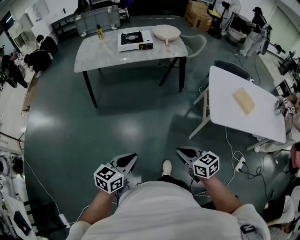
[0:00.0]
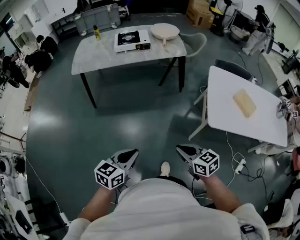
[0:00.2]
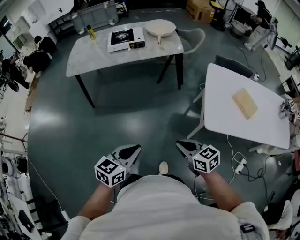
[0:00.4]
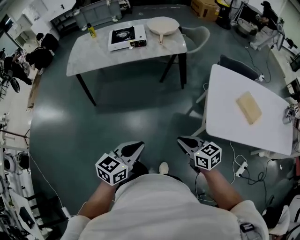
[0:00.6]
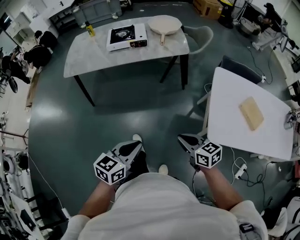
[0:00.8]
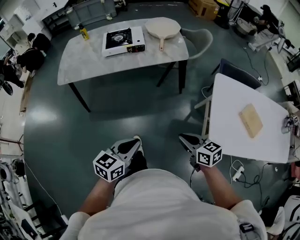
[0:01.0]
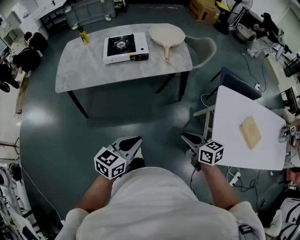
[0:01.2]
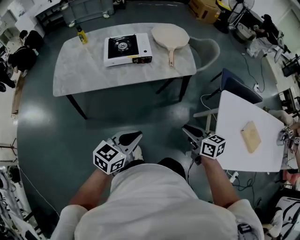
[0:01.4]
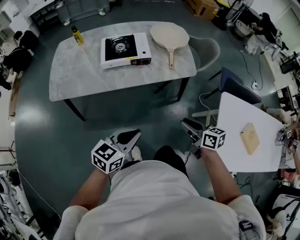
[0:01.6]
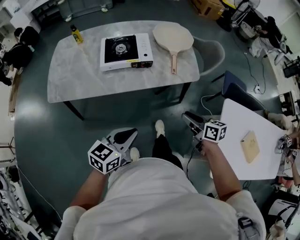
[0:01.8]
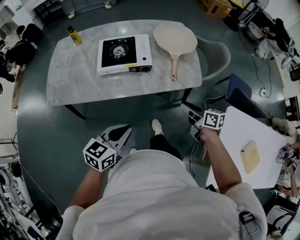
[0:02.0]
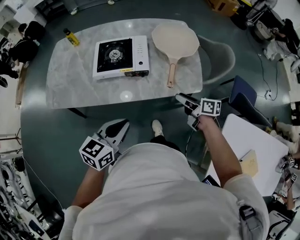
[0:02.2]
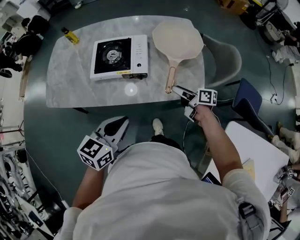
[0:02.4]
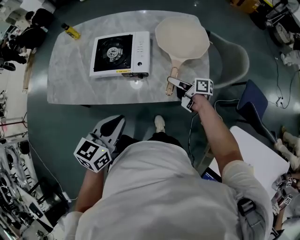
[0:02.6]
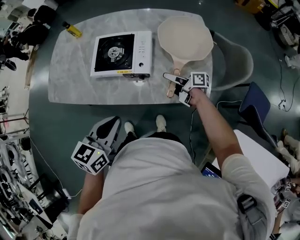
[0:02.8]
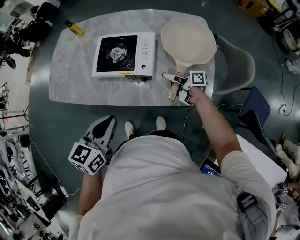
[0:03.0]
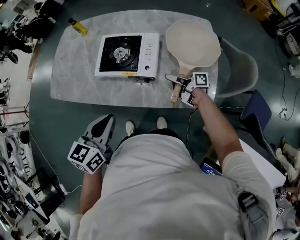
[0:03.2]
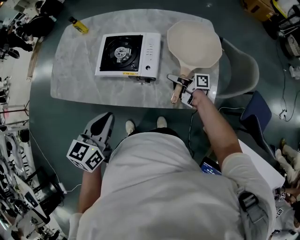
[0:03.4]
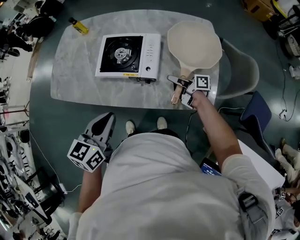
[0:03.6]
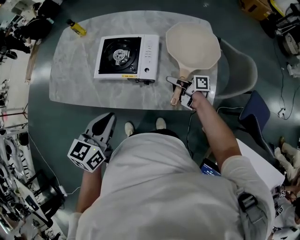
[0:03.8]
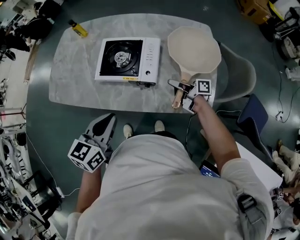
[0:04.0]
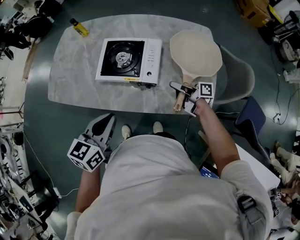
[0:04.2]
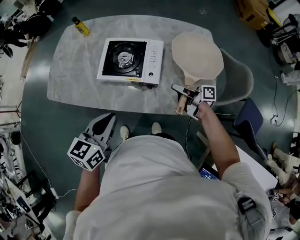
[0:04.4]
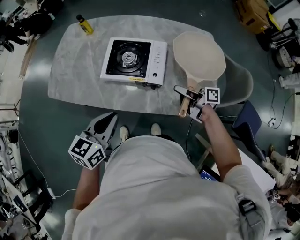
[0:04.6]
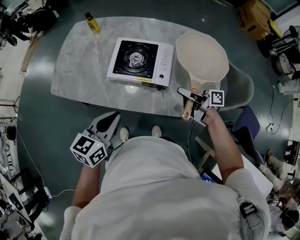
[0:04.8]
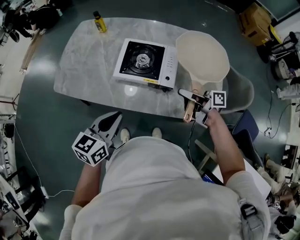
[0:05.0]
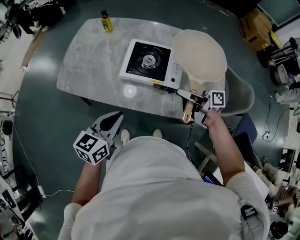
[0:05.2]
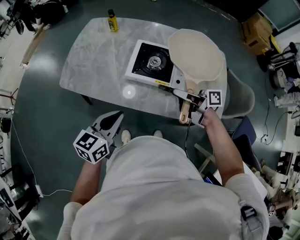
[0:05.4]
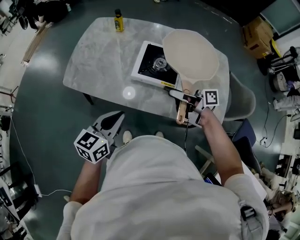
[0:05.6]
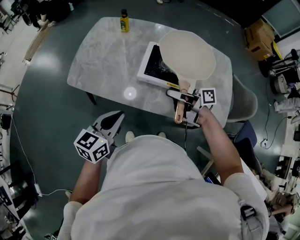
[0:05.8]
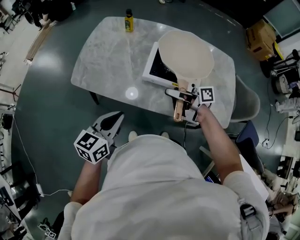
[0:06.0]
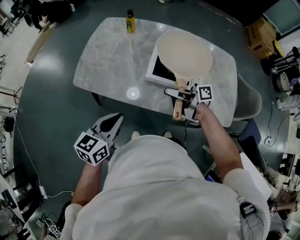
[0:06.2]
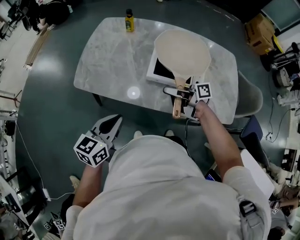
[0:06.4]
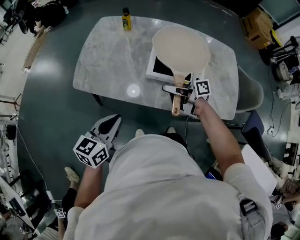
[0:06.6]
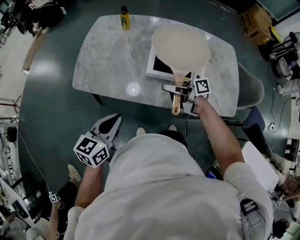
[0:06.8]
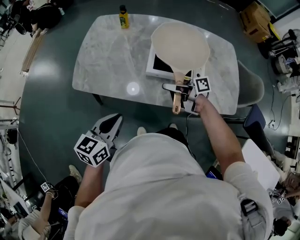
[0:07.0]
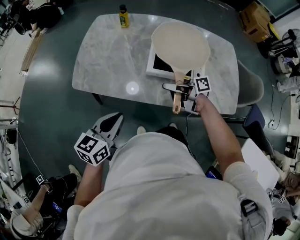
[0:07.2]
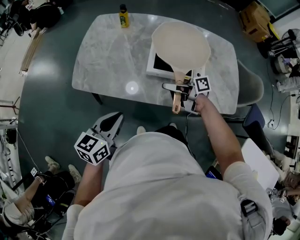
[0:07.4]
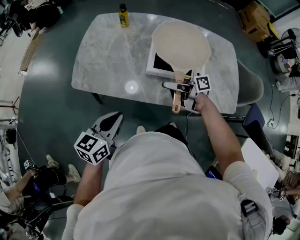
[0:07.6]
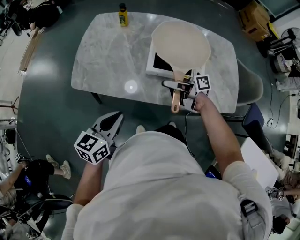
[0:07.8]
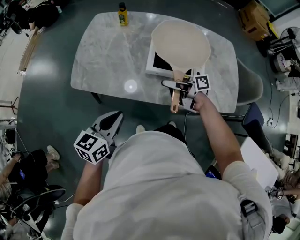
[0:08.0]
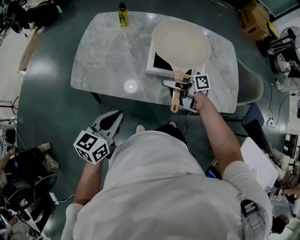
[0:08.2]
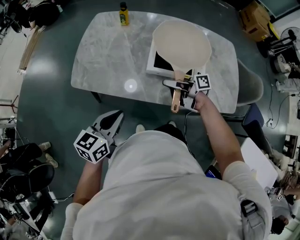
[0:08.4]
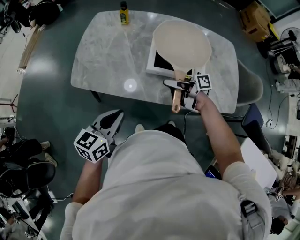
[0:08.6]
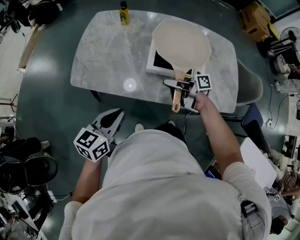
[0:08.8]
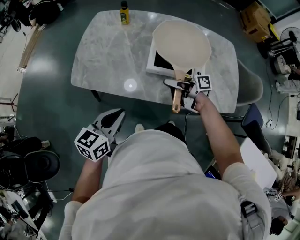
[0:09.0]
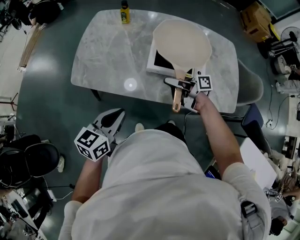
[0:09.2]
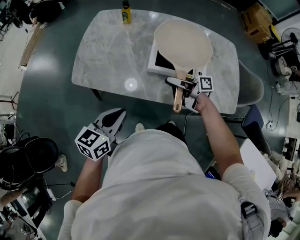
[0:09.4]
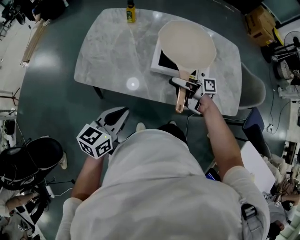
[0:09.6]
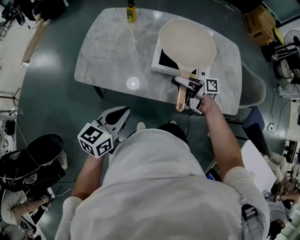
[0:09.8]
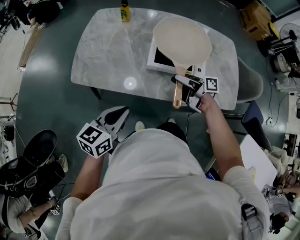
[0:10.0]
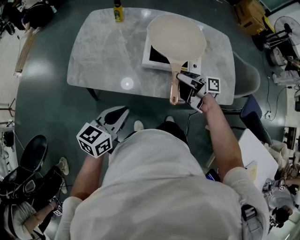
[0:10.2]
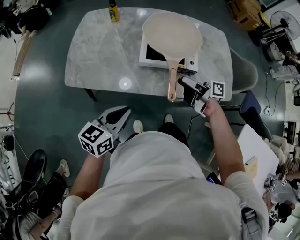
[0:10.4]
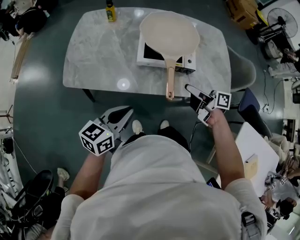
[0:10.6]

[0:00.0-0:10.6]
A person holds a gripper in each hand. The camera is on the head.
0:00.0 to 0:01.6: The two grippers travel together, forward, approximately 50 cm.
0:01.6 to 0:03.0: The left gripper changes place by roughly 25 cm, and swivels about 30 degrees, while the right gripper ends up some 50 cm from where it was, and swivels approximately 50 degrees.
0:03.0 to 0:04.6: The right gripper moves upward, approximately 10 cm, and closes its fingers. The left gripper ends up about 5 cm from where it was.
0:04.6 to 0:06.0: The two grippers go roughly 20 cm to the left.
0:06.0 to 0:07.6: The right gripper ends up about 5 cm from where it was. Meanwhile the left gripper ends up roughly 5 cm from where it was.
0:07.6 to 0:09.0: The grippers stay close to where they were, moving slightly.
0:09.0 to 0:10.6: The right gripper goes about 15 cm to the right and backward, swivels some 30 degrees, and opens up. Meanwhile the left gripper changes place by about 5 cm.

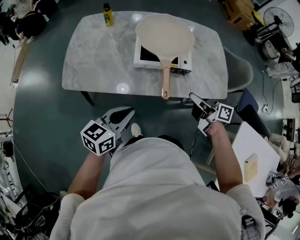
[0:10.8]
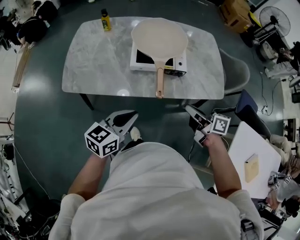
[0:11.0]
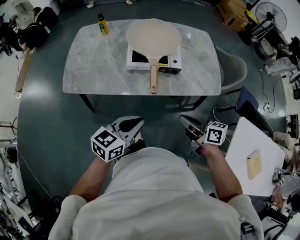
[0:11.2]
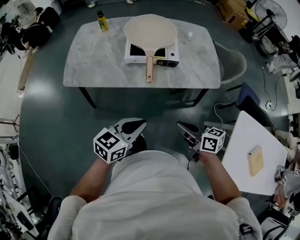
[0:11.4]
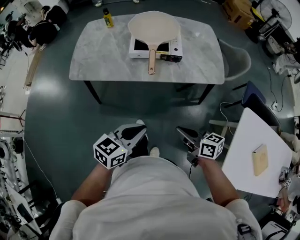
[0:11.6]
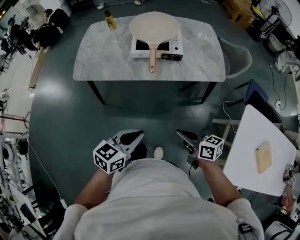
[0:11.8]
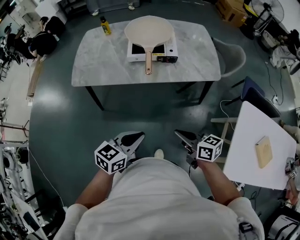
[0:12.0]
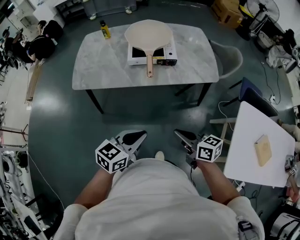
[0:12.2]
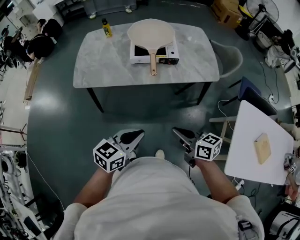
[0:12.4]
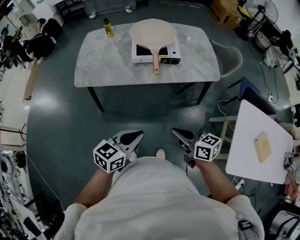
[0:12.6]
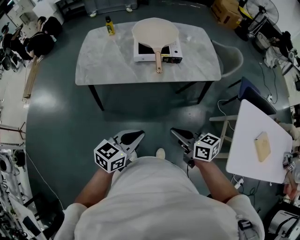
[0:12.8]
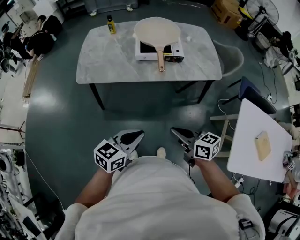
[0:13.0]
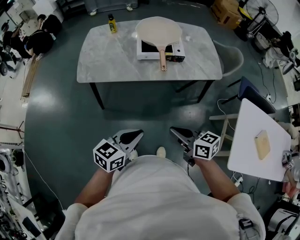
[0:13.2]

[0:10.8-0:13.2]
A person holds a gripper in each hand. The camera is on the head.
0:10.8 to 0:12.0: The right gripper is displaced backward by approximately 30 cm, and changes its angle by approximately 20 degrees, while the left gripper travels backward and to the right by some 25 cm.
0:12.0 to 0:13.2: The grippers both shift to the left by some 10 cm.

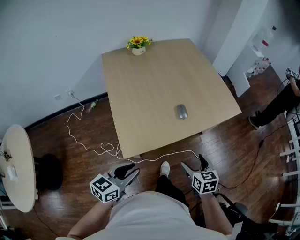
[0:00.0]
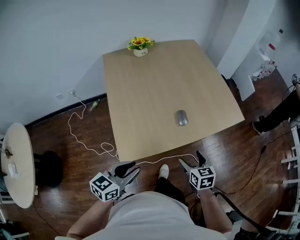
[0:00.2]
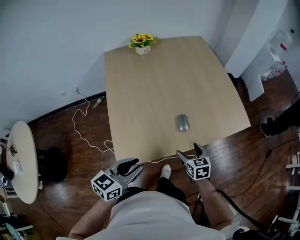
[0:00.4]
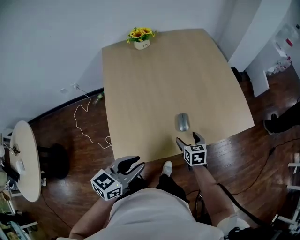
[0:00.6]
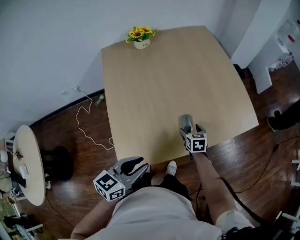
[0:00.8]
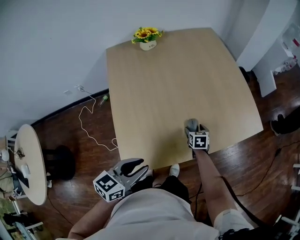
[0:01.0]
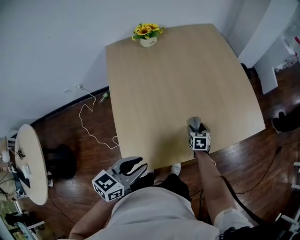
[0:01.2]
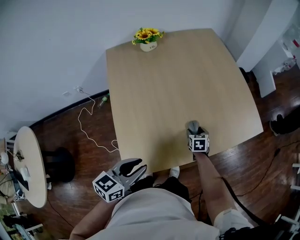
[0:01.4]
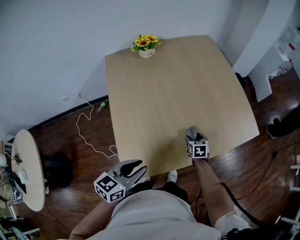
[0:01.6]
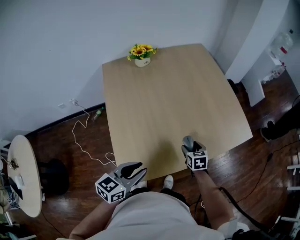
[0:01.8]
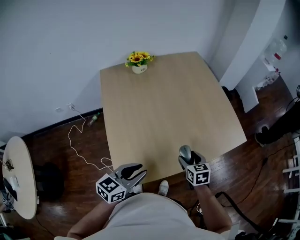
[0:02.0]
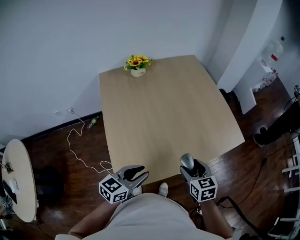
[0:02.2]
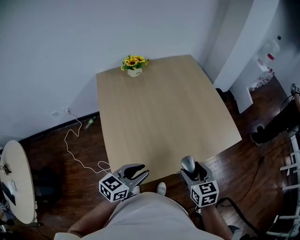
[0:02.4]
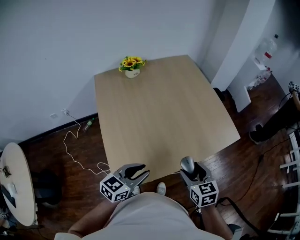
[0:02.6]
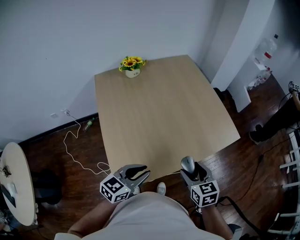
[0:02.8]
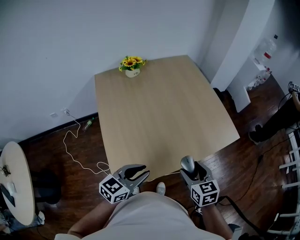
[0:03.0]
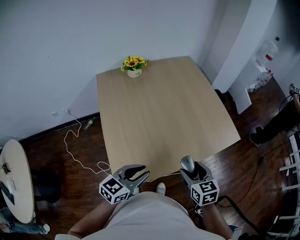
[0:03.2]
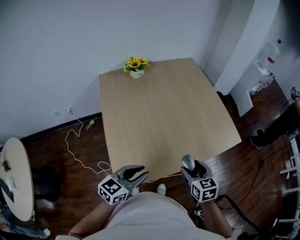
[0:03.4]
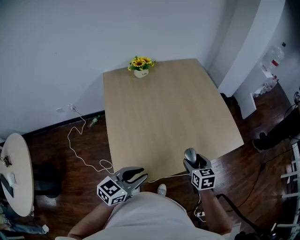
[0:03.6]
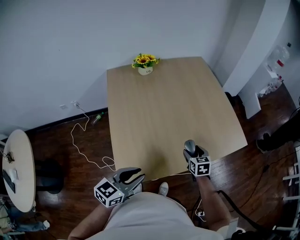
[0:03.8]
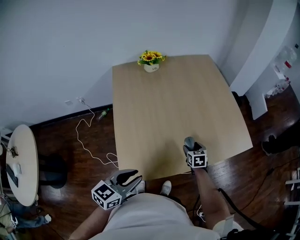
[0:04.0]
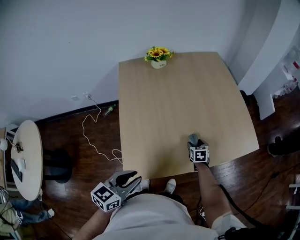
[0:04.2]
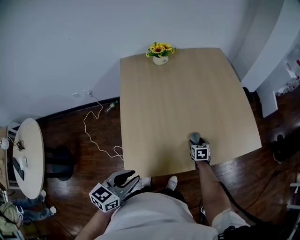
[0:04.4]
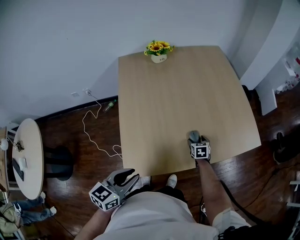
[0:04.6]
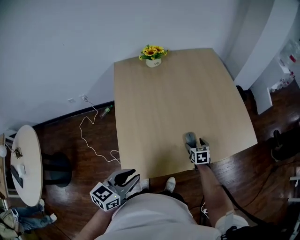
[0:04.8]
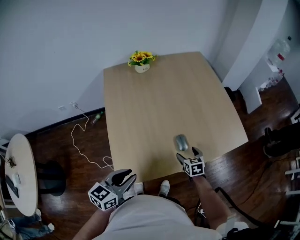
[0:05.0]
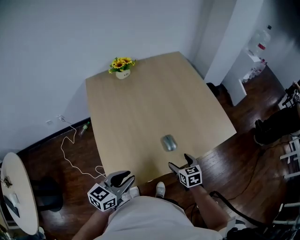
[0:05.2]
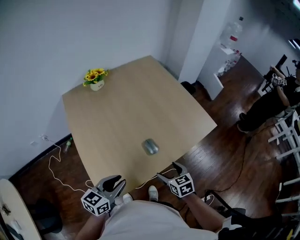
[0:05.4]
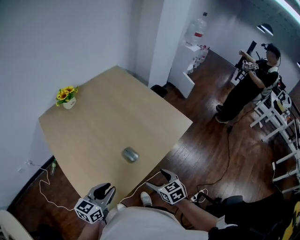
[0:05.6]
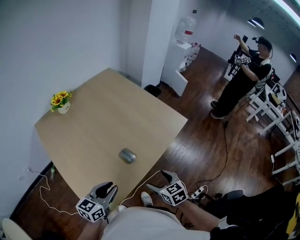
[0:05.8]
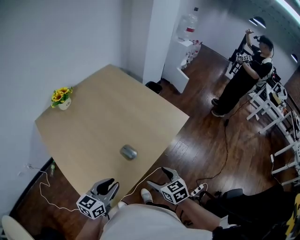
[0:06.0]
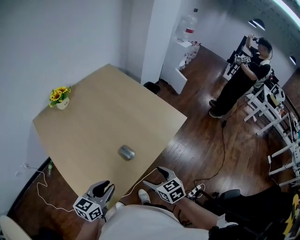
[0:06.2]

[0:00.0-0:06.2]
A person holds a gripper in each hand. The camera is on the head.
0:00.0 to 0:01.6: The right gripper goes some 35 cm forward and downward. The left gripper travels forward by roughly 20 cm.
0:01.6 to 0:03.2: The left gripper moves some 5 cm. Meanwhile the right gripper moves upward and backward, roughly 30 cm.
0:03.2 to 0:04.6: The right gripper shifts some 30 cm downward and forward. The left gripper goes roughly 10 cm to the left and backward, and swivels approximately 20 degrees.
0:04.6 to 0:06.2: The right gripper goes some 30 cm upward and backward. The left gripper shifts some 10 cm forward and to the right, and rotates about 30 degrees.

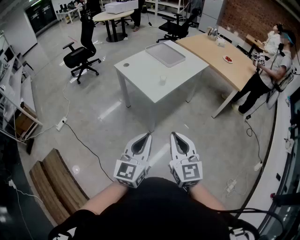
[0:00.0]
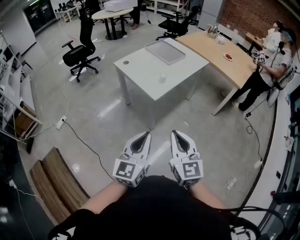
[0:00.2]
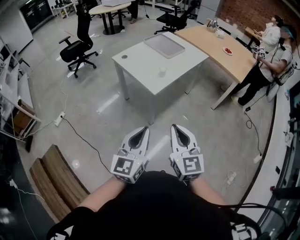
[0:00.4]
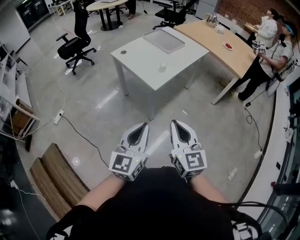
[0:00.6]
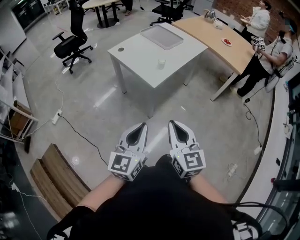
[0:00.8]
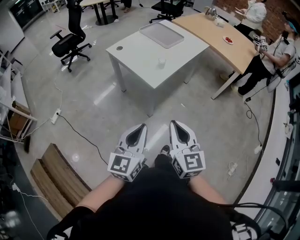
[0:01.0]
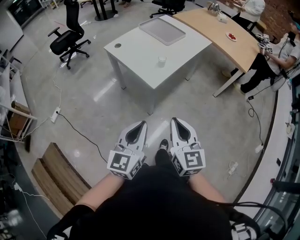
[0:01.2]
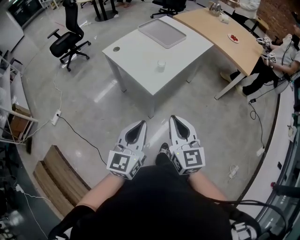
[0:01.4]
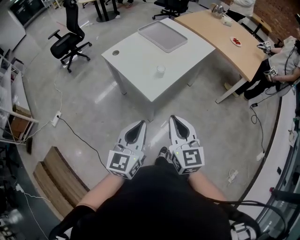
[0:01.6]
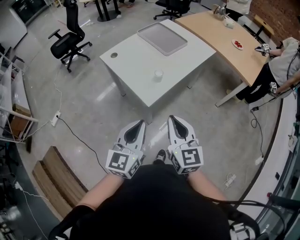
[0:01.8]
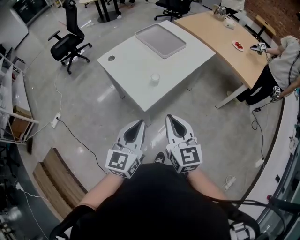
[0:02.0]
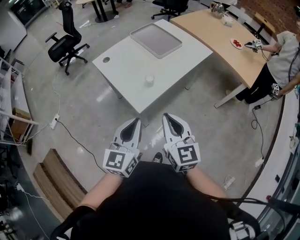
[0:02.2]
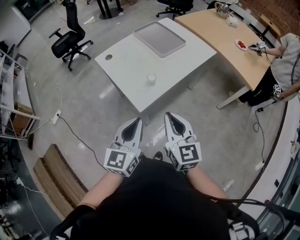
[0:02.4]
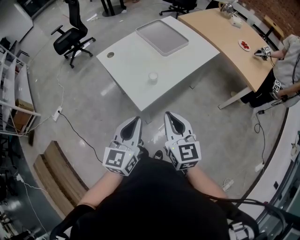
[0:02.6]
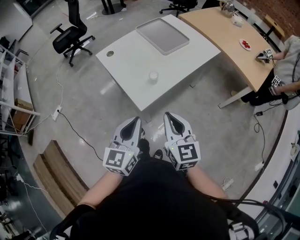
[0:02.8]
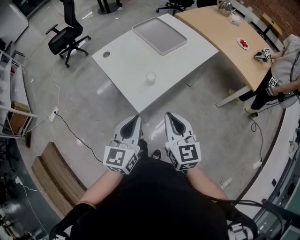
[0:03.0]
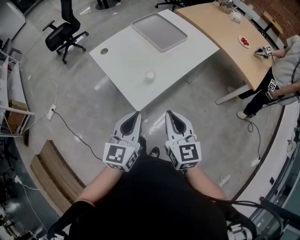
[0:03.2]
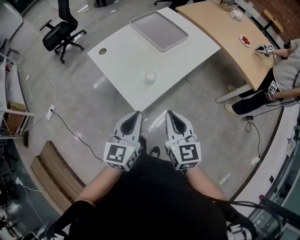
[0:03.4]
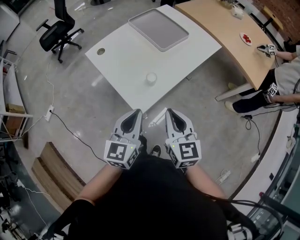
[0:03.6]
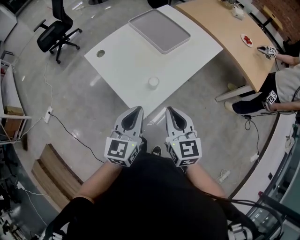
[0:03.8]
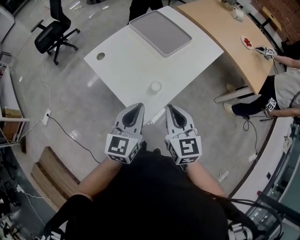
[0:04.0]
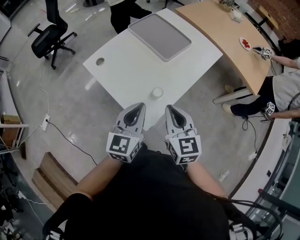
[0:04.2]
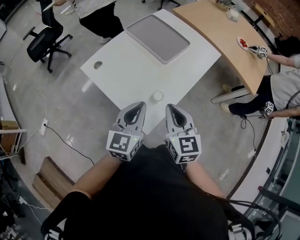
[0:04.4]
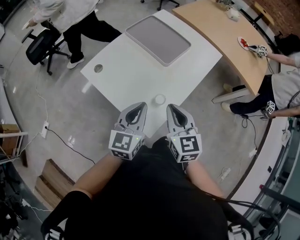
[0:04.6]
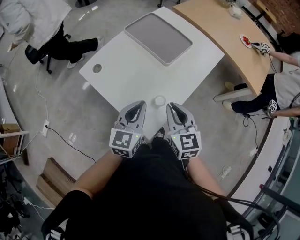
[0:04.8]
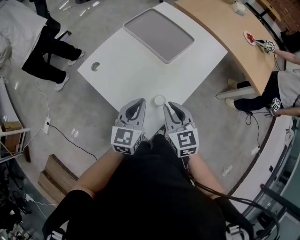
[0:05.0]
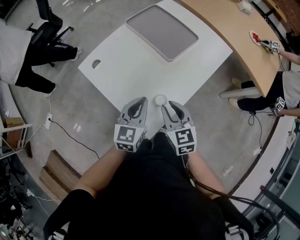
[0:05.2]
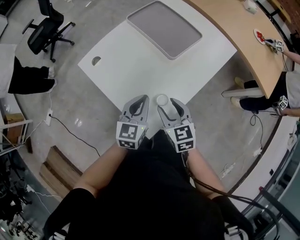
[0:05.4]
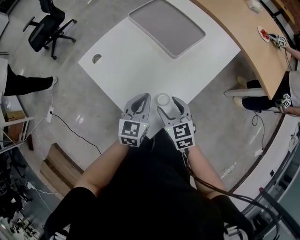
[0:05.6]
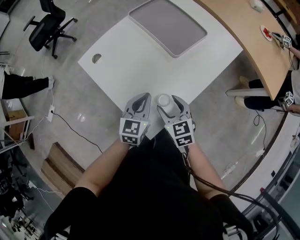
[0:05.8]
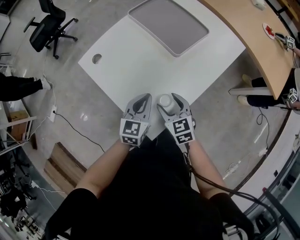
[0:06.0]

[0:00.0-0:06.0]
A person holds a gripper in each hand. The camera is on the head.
0:00.0 to 0:01.6: Both grippers move forward, approximately 20 cm.
0:01.6 to 0:03.0: The two grippers go some 15 cm forward and to the right.
0:03.0 to 0:04.4: The left gripper is displaced forward by roughly 20 cm. The right gripper goes about 20 cm forward and to the left.
0:04.4 to 0:06.0: The grippers both shift downward and forward by some 20 cm. The right gripper turns by some 20 degrees, and opens its fingers.
